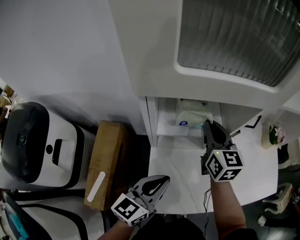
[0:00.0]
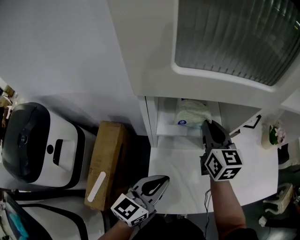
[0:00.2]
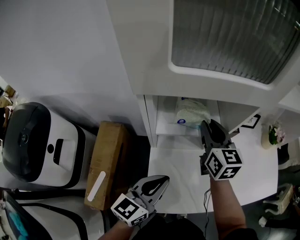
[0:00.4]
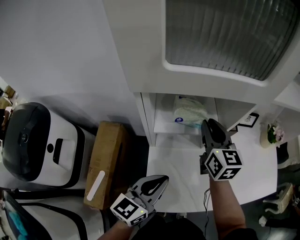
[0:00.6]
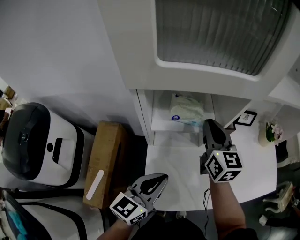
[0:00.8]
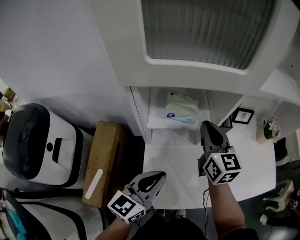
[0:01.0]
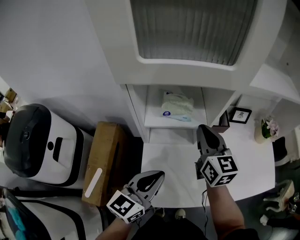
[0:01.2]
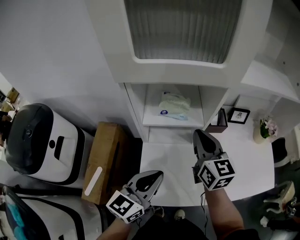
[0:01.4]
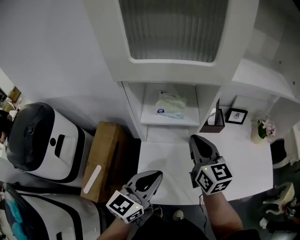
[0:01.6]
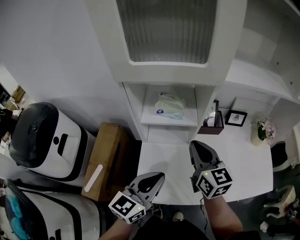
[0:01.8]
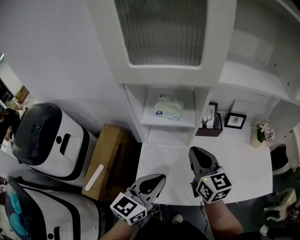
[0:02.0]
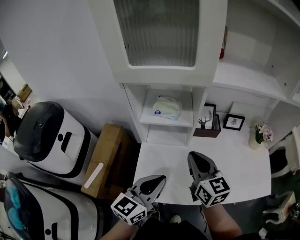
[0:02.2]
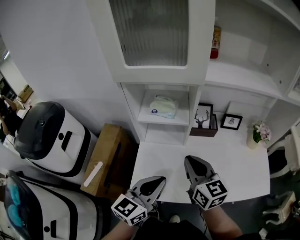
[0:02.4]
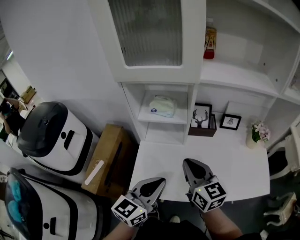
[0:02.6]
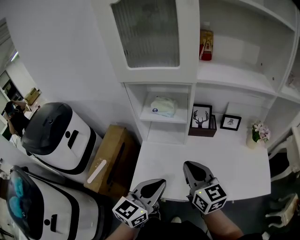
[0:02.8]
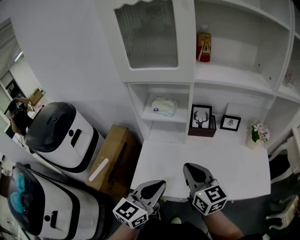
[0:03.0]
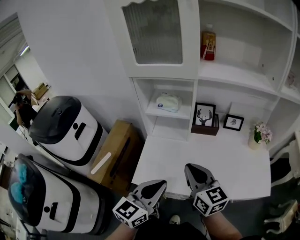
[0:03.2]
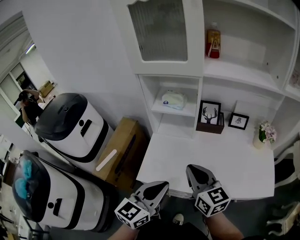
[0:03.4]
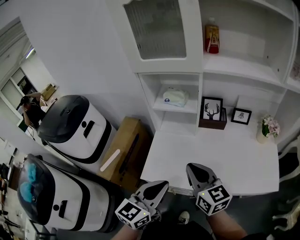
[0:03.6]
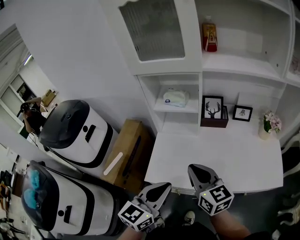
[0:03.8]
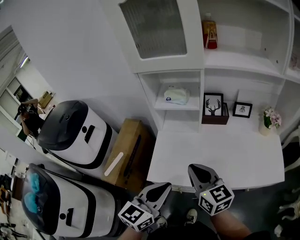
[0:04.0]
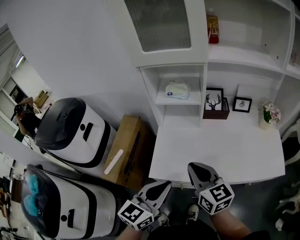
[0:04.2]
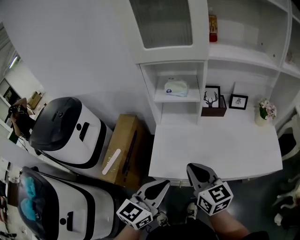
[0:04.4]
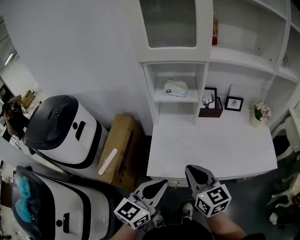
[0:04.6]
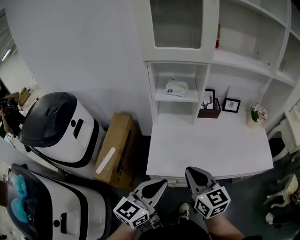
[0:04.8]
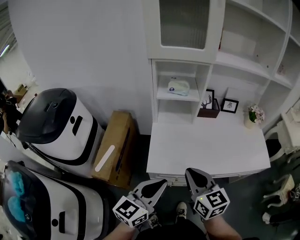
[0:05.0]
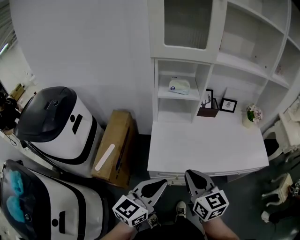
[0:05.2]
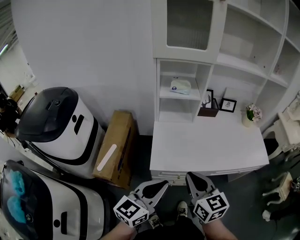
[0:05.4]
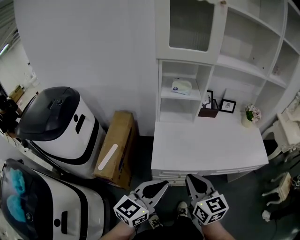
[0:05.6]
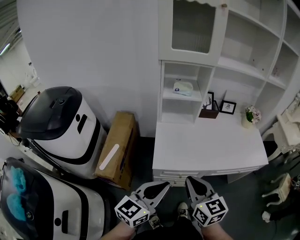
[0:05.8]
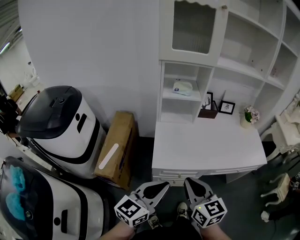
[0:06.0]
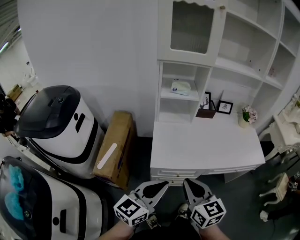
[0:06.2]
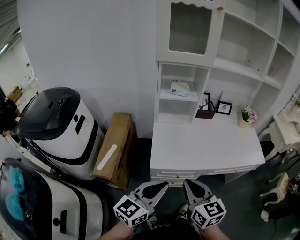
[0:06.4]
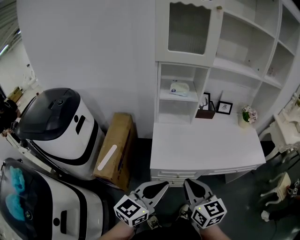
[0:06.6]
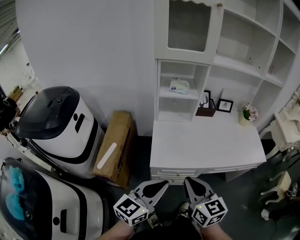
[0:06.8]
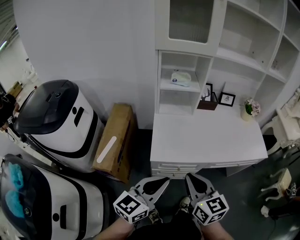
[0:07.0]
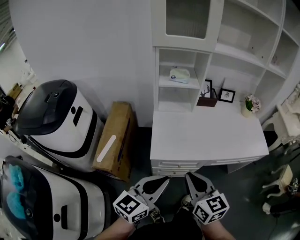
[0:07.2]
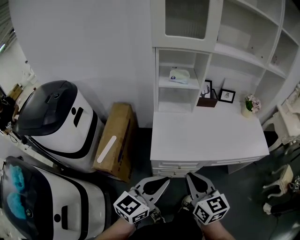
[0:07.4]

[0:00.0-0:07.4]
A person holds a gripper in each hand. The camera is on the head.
0:00.0 to 0:01.4: The left gripper ends up about 5 cm from where it was. The right gripper heads backward, covering about 10 cm.
0:01.4 to 0:03.0: The left gripper travels backward and to the right by roughly 20 cm, while the right gripper moves backward, roughly 20 cm.
0:03.0 to 0:04.4: The two grippers go approximately 10 cm to the left and backward.
0:04.4 to 0:06.0: The two grippers go roughly 15 cm backward and to the left.
0:06.0 to 0:07.4: There are only small adjustments of the grippers.

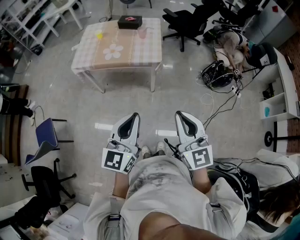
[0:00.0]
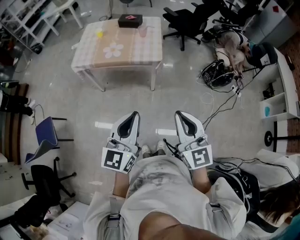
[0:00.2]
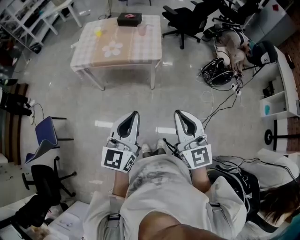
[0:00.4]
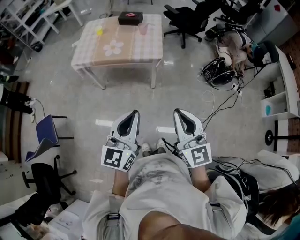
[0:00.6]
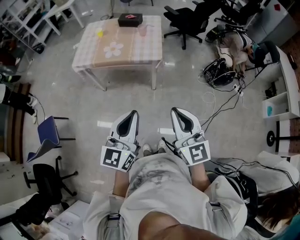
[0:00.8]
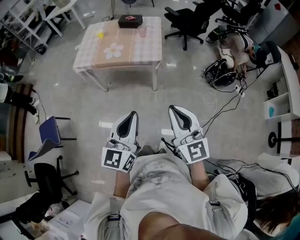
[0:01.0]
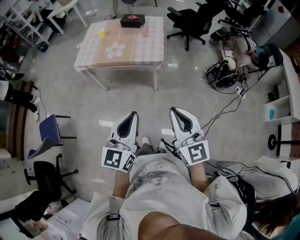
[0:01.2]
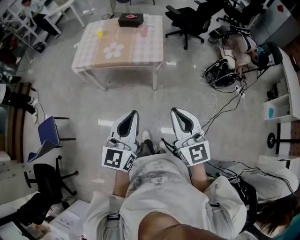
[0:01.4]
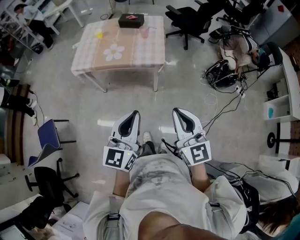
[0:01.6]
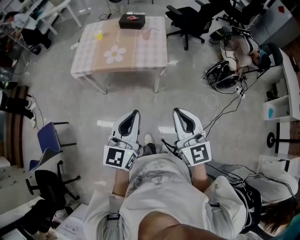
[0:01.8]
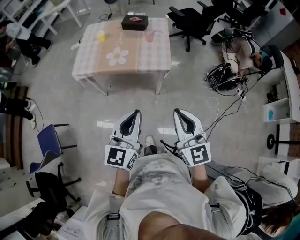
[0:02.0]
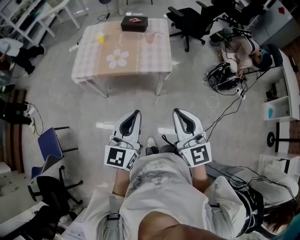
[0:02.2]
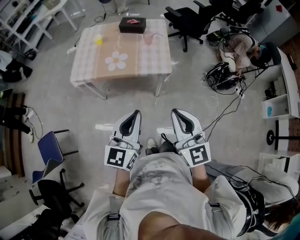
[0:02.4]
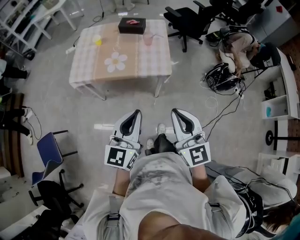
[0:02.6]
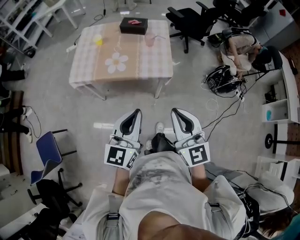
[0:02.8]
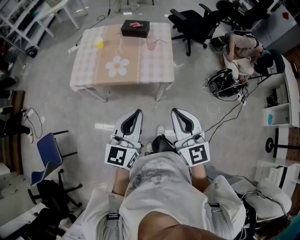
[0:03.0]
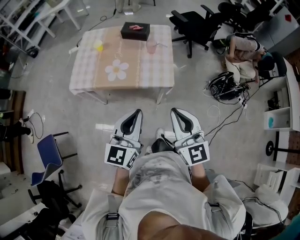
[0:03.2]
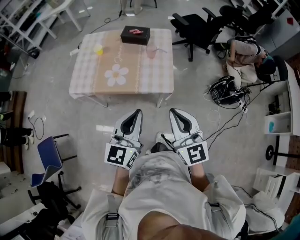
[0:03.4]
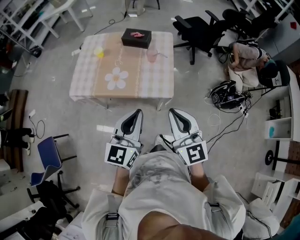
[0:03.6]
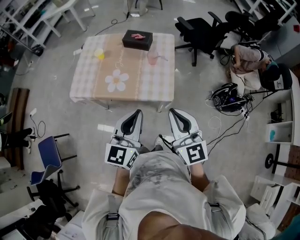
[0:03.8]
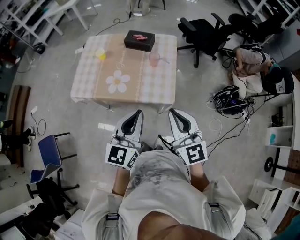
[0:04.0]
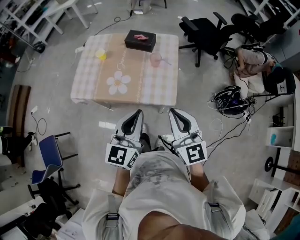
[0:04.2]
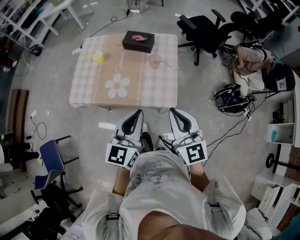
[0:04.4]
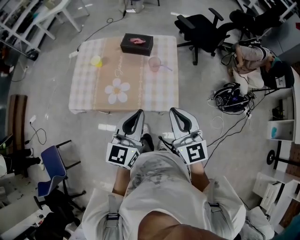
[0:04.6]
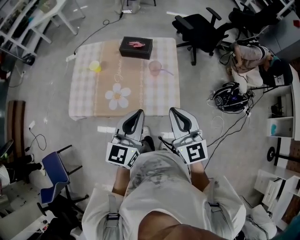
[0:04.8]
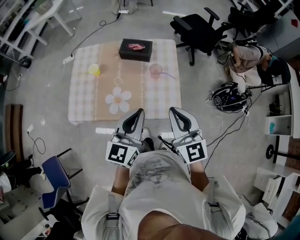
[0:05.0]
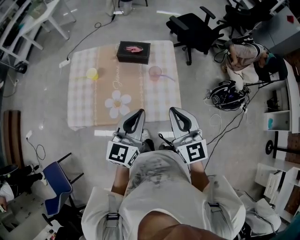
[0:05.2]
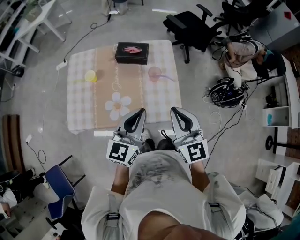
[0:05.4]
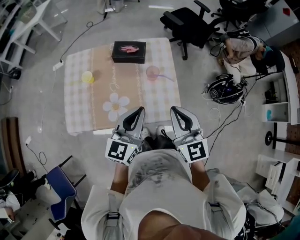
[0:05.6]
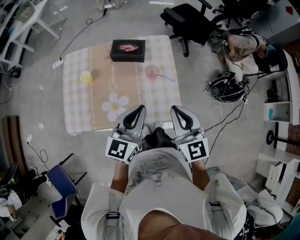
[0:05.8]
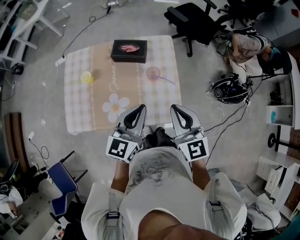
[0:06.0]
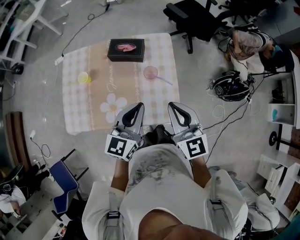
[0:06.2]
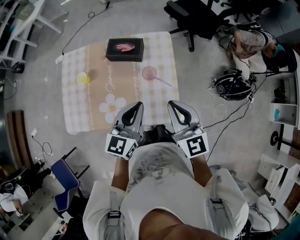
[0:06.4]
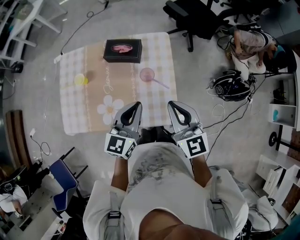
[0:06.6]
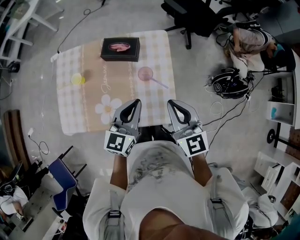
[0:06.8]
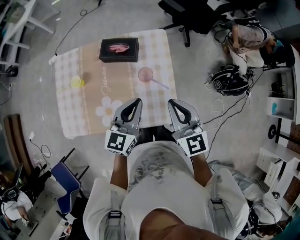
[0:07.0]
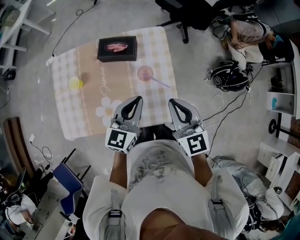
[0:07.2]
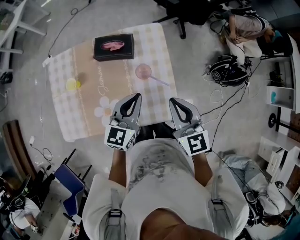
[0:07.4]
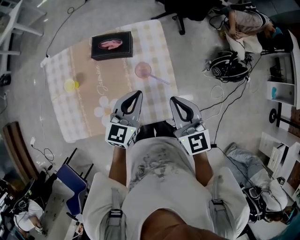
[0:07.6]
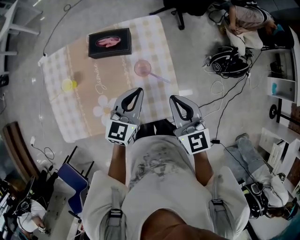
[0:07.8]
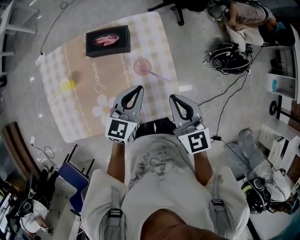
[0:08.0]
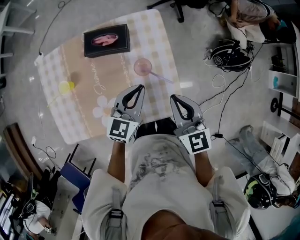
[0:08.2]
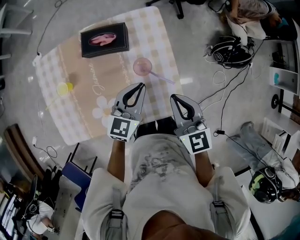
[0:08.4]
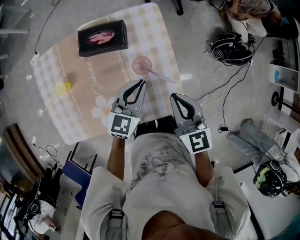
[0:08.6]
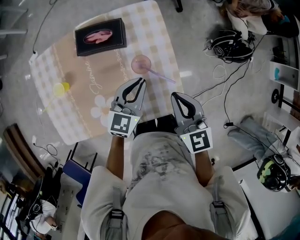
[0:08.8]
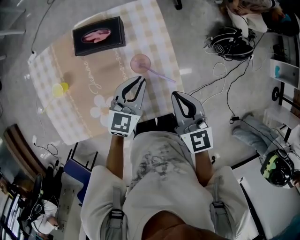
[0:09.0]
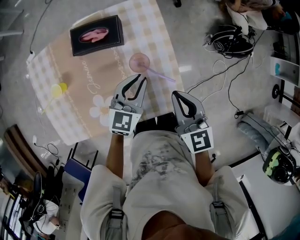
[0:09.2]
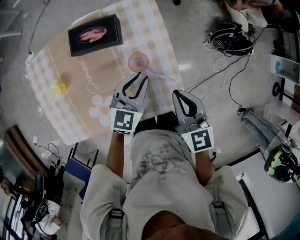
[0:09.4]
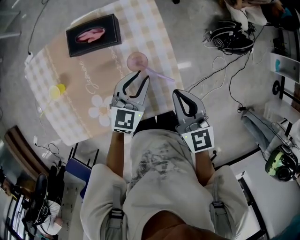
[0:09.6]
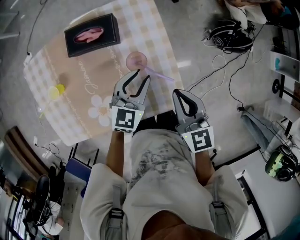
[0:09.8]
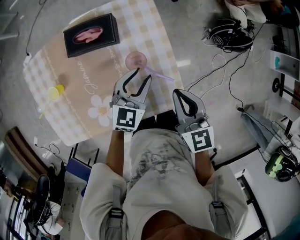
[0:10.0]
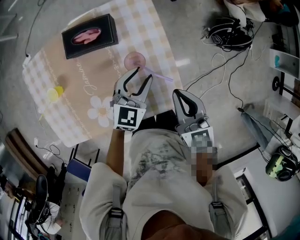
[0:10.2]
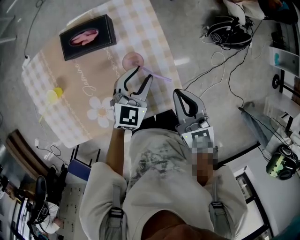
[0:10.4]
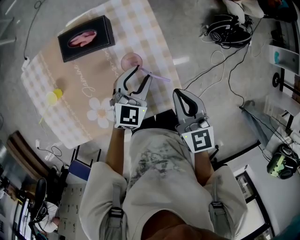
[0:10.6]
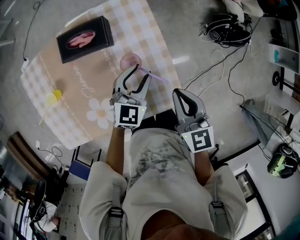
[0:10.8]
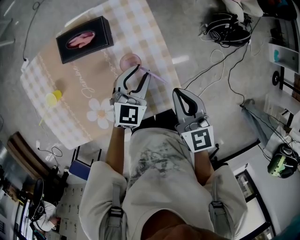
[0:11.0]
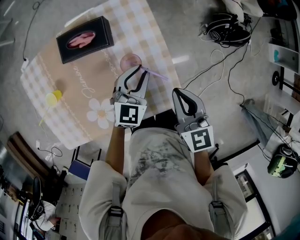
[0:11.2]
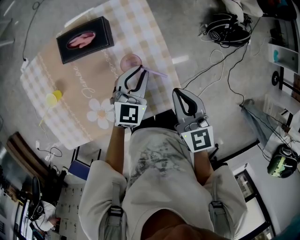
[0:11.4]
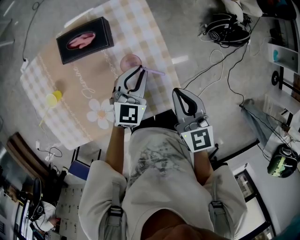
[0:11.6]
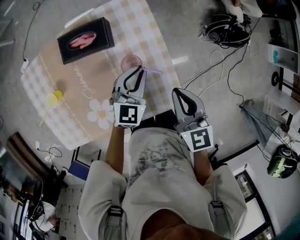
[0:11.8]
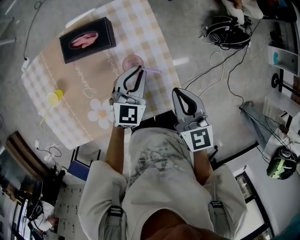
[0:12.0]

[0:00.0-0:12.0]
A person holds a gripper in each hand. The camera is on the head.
0:00.0 to 0:01.6: The two grippers go some 5 cm forward.
0:01.6 to 0:03.0: The right gripper is displaced forward and to the left by some 20 cm; the left gripper moves forward, some 20 cm.
0:03.0 to 0:04.4: The two grippers go about 20 cm forward.
0:04.4 to 0:06.0: The two grippers go some 20 cm forward.
0:06.0 to 0:07.6: Both grippers travel together forward and downward, some 10 cm.
0:07.6 to 0:09.0: The left gripper shifts some 10 cm downward and forward, while the right gripper shifts approximately 5 cm downward.
0:09.0 to 0:10.4: The left gripper changes place by some 5 cm, and opens its fingers.
0:10.4 to 0:12.0: The left gripper closes its fingers.

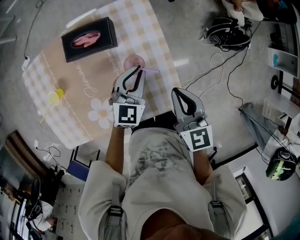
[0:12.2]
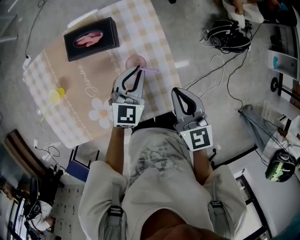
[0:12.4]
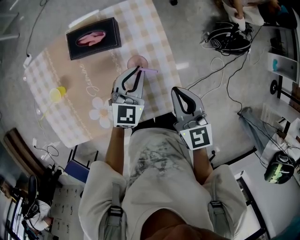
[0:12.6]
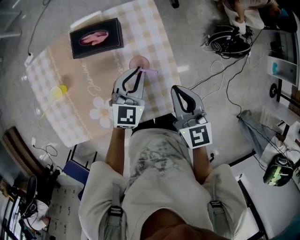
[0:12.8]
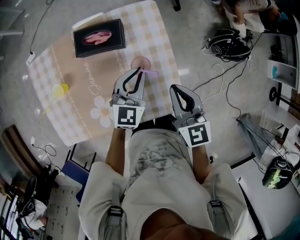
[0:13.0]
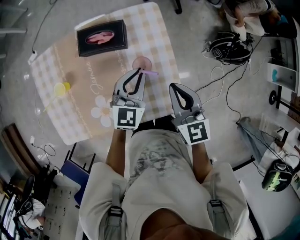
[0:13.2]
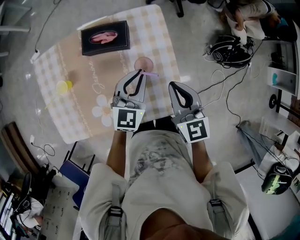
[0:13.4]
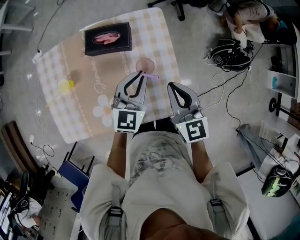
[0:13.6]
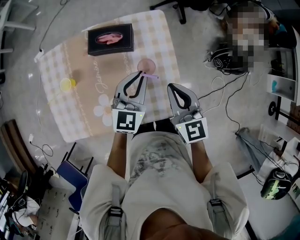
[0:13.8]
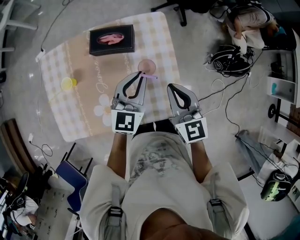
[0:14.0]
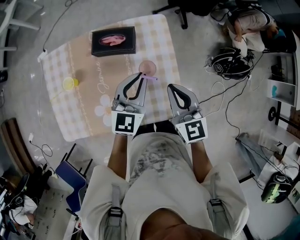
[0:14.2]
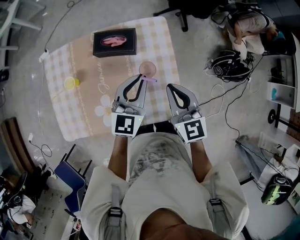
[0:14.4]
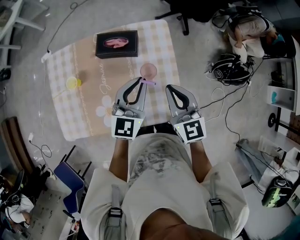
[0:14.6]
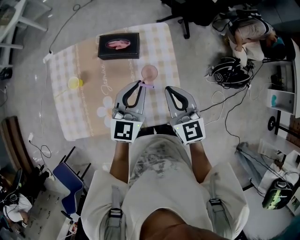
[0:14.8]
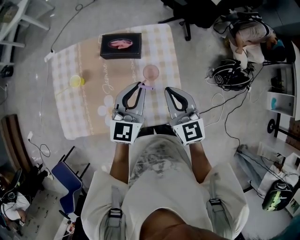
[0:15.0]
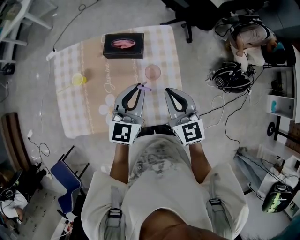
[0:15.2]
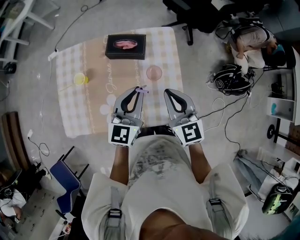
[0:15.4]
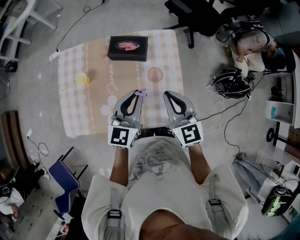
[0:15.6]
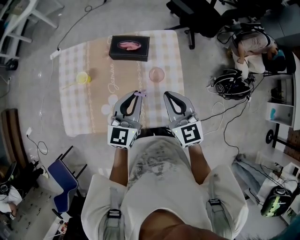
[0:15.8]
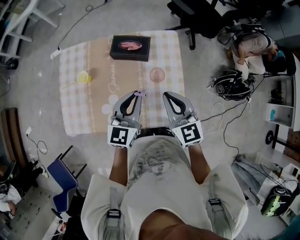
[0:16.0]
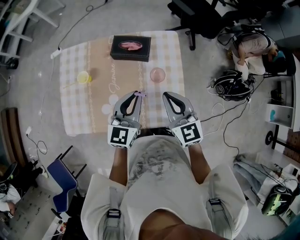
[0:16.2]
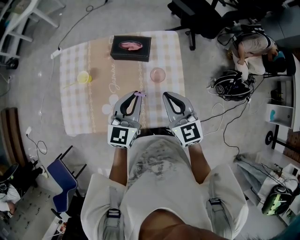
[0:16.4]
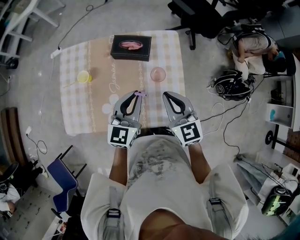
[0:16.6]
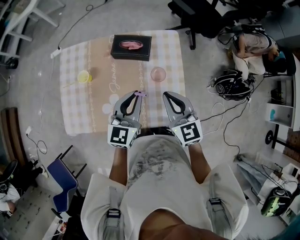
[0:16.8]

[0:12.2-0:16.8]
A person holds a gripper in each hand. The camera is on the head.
0:12.2 to 0:13.8: The left gripper shifts roughly 10 cm upward; the right gripper ends up about 5 cm from where it was.
0:13.8 to 0:15.2: The left gripper goes some 10 cm backward and upward; the right gripper shifts by about 5 cm.
0:15.2 to 0:16.8: The left gripper changes place by roughly 5 cm.
